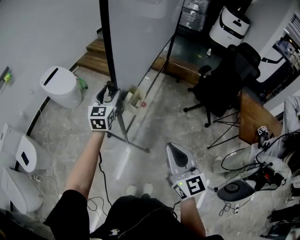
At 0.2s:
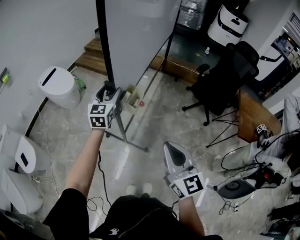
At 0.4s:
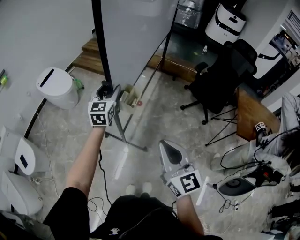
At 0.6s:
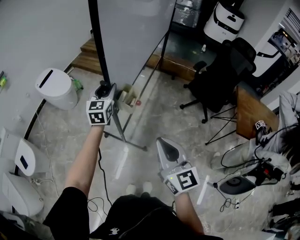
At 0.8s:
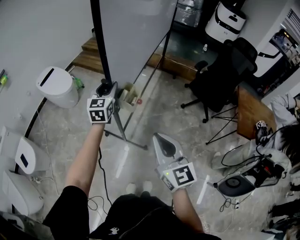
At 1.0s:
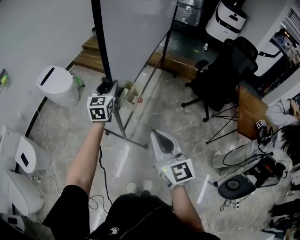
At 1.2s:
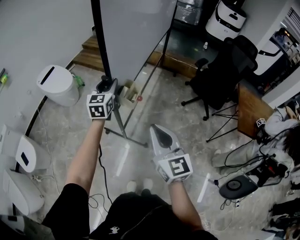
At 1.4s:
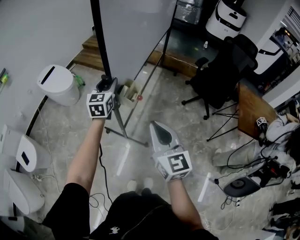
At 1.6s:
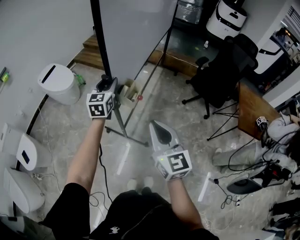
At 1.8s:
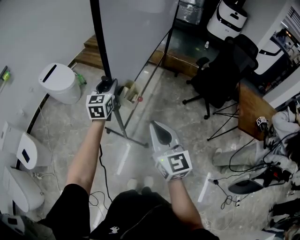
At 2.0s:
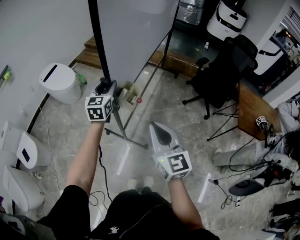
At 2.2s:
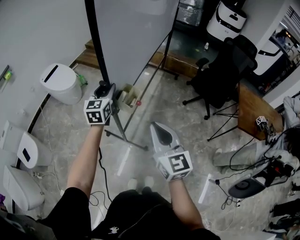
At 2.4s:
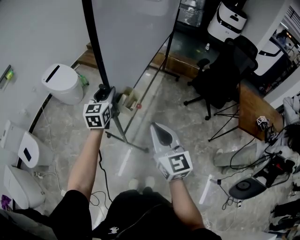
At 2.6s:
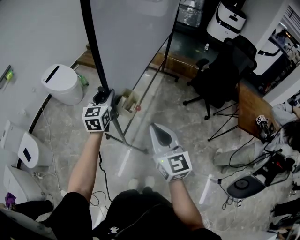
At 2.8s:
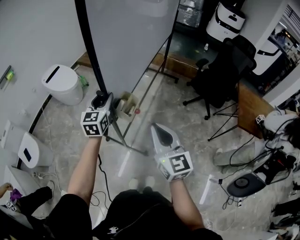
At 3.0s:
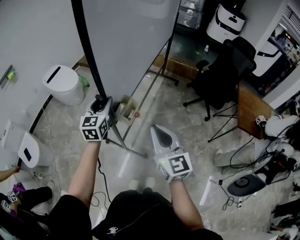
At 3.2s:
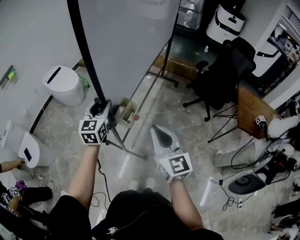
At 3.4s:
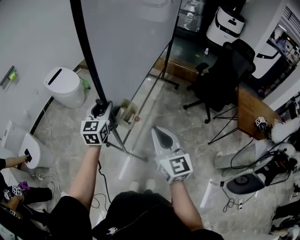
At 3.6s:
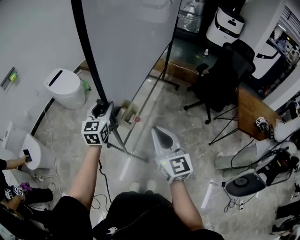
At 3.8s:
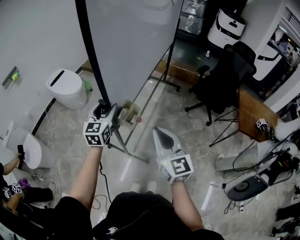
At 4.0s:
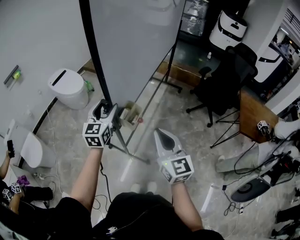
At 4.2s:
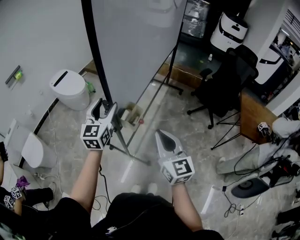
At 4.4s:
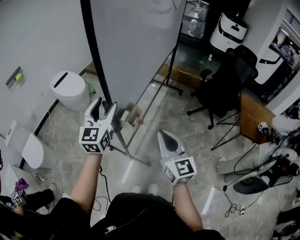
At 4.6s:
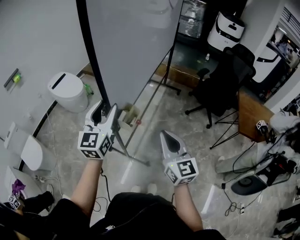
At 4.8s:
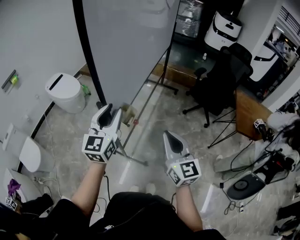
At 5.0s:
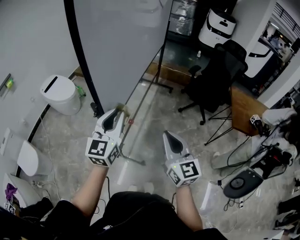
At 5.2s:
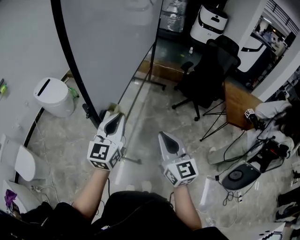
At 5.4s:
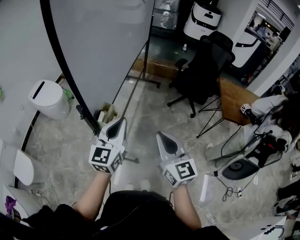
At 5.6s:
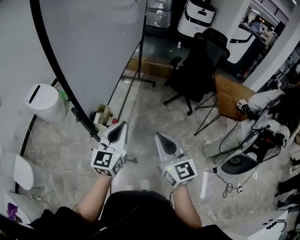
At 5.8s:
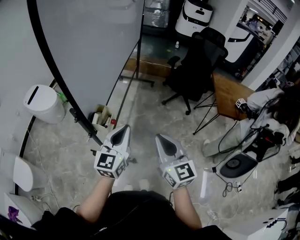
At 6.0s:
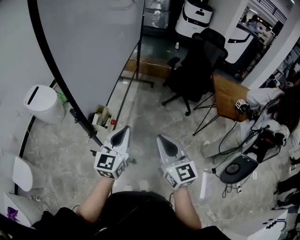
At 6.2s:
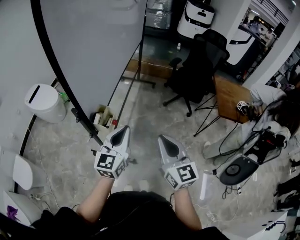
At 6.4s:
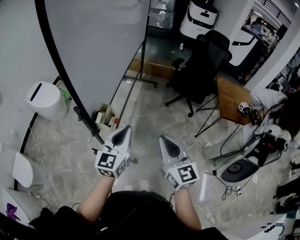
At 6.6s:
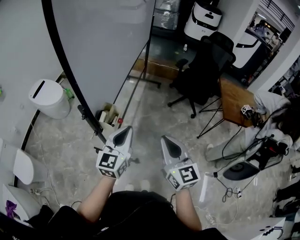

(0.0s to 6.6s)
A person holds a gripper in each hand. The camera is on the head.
0.0s - 1.6s: The right gripper changes place by about 5 cm.
1.6s - 3.2s: The right gripper moves backward, about 5 cm; the left gripper moves backward and to the left, approximately 15 cm.
3.2s - 5.0s: The left gripper moves to the right, backward and upward, about 15 cm, and opens, then closes once more. Meanwhile the right gripper shifts approximately 5 cm to the right.
5.0s - 6.6s: The left gripper shifts roughly 10 cm to the right and downward.

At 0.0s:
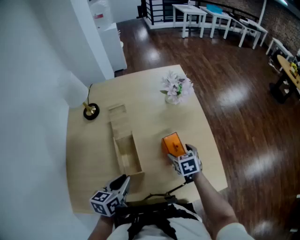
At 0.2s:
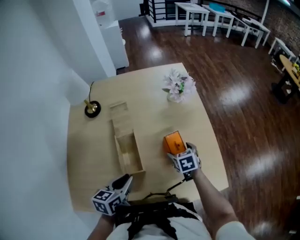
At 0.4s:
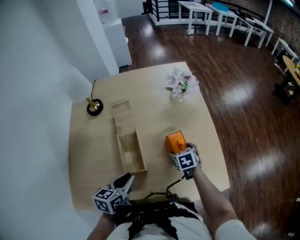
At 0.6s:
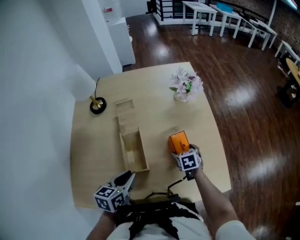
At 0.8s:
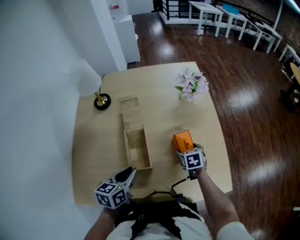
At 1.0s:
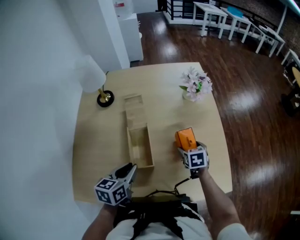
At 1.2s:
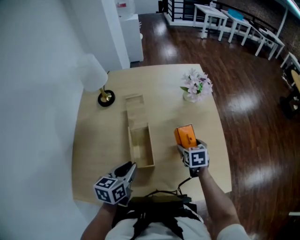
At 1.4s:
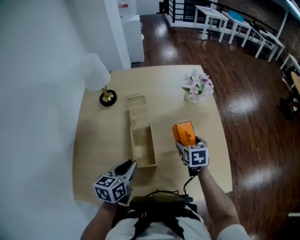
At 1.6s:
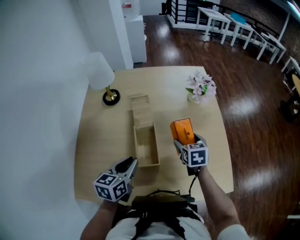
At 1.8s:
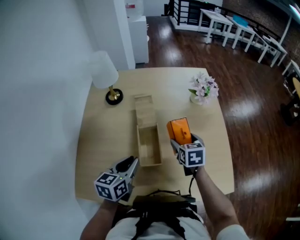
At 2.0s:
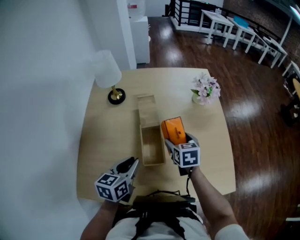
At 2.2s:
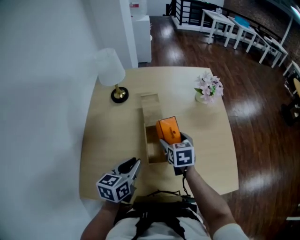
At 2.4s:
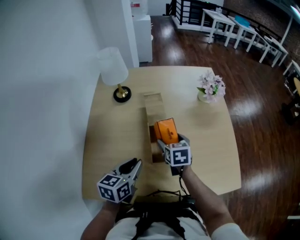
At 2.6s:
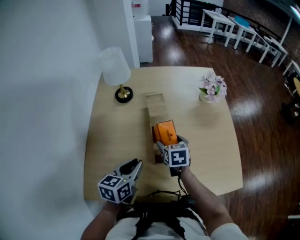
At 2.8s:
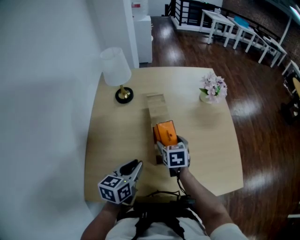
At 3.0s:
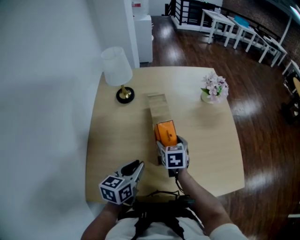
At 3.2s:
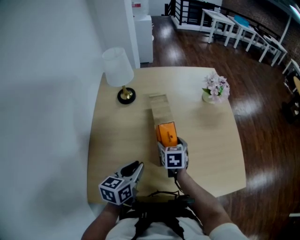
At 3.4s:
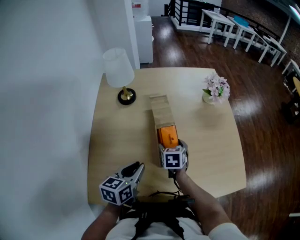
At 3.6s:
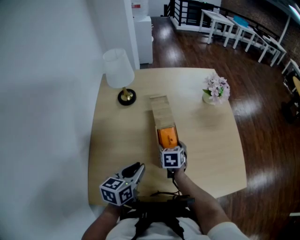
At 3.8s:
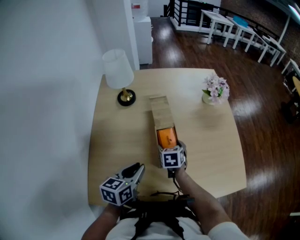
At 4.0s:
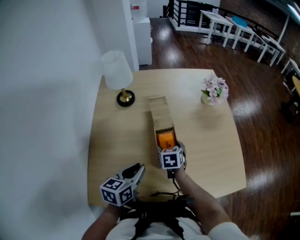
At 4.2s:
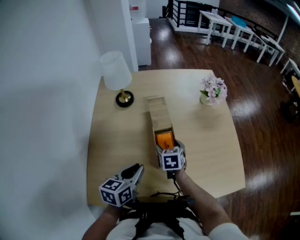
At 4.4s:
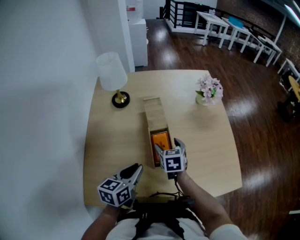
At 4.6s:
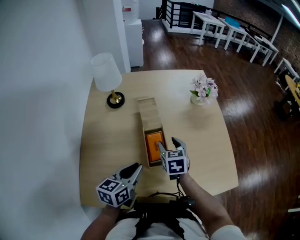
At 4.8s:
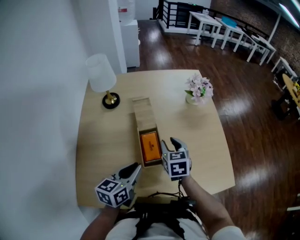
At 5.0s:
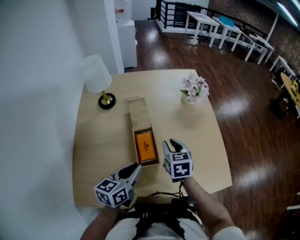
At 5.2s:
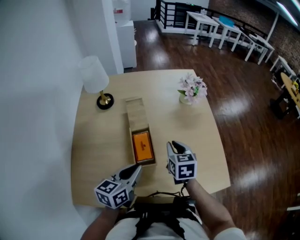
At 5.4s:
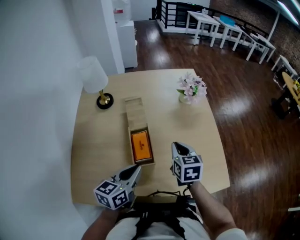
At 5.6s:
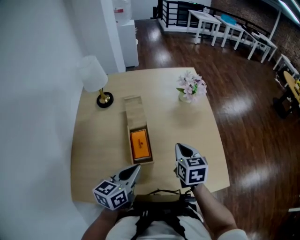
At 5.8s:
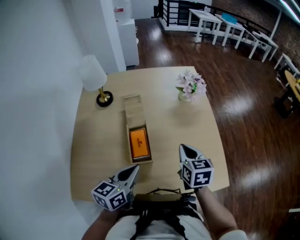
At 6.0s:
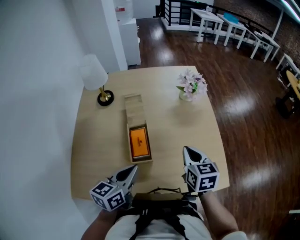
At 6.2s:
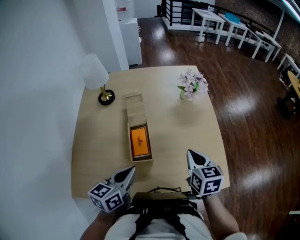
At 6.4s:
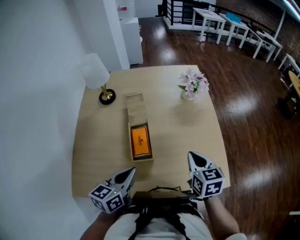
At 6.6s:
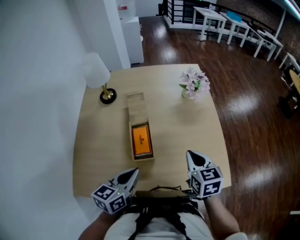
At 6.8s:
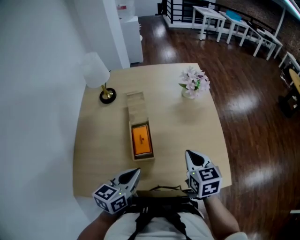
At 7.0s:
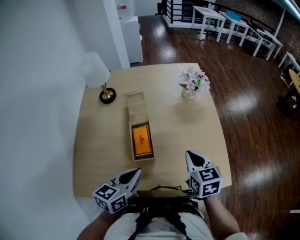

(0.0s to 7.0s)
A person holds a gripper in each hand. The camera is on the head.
0.0s - 1.4s: The right gripper changes place by roughly 5 cm.
1.4s - 2.8s: The left gripper goes roughly 10 cm to the left. The right gripper goes some 20 cm to the left.
2.8s - 4.2s: The grippers stay close to where they were, moving slightly.
4.2s - 5.6s: The right gripper moves to the right and upward, approximately 20 cm, and closes. The left gripper shifts about 15 cm to the right.
5.6s - 7.0s: The right gripper shifts by approximately 5 cm.

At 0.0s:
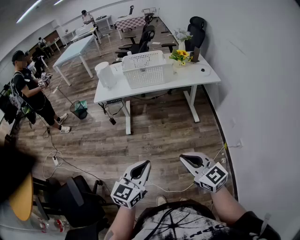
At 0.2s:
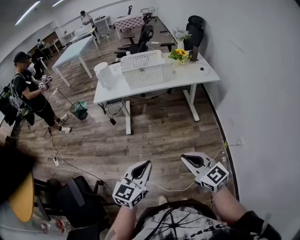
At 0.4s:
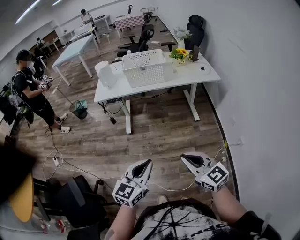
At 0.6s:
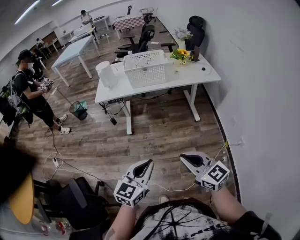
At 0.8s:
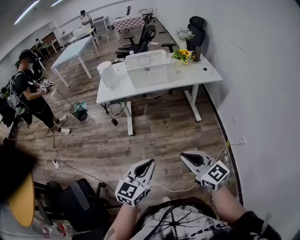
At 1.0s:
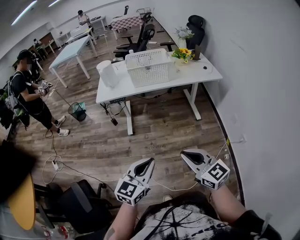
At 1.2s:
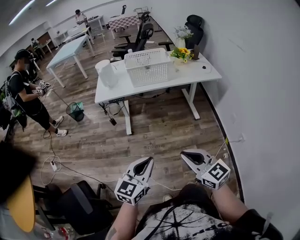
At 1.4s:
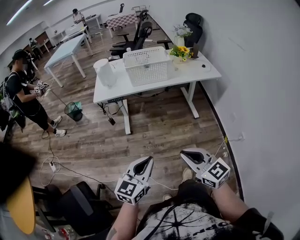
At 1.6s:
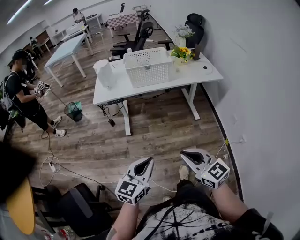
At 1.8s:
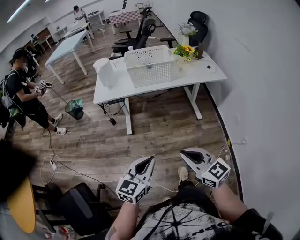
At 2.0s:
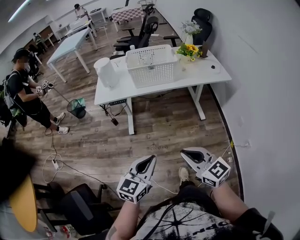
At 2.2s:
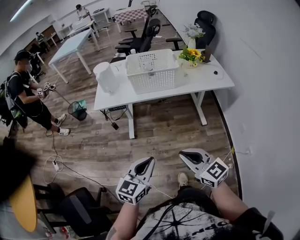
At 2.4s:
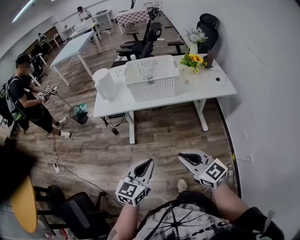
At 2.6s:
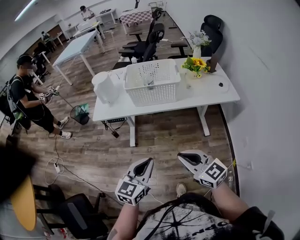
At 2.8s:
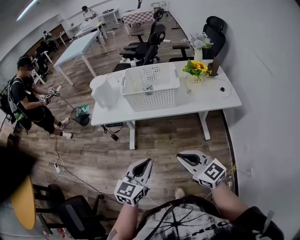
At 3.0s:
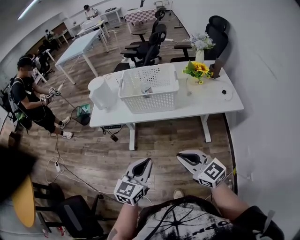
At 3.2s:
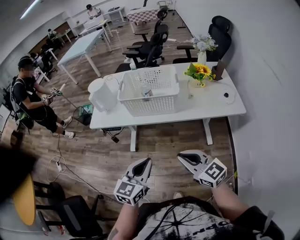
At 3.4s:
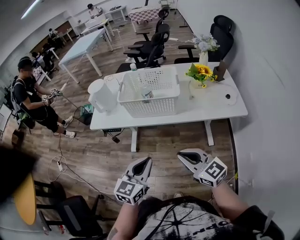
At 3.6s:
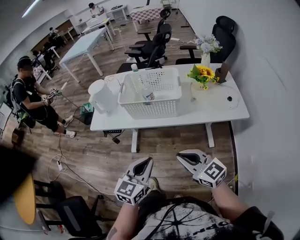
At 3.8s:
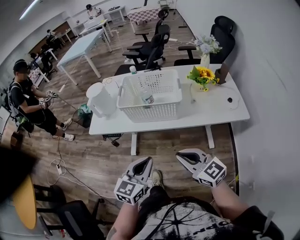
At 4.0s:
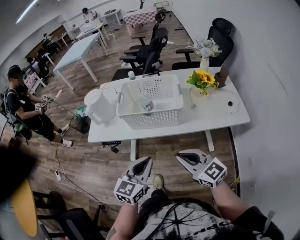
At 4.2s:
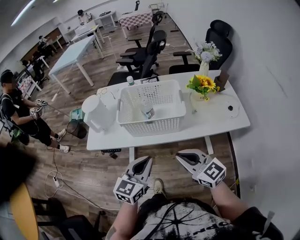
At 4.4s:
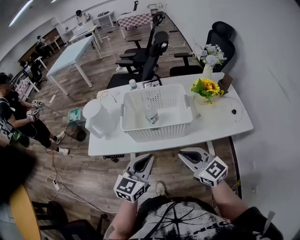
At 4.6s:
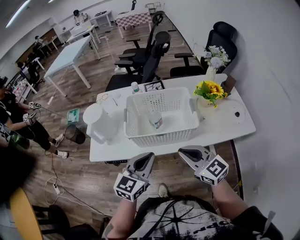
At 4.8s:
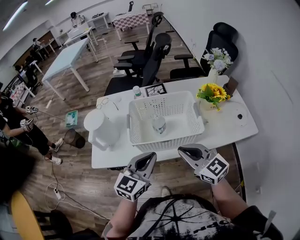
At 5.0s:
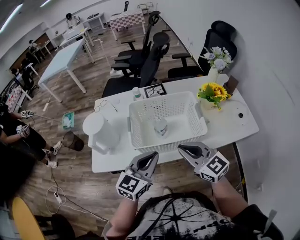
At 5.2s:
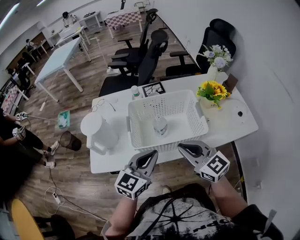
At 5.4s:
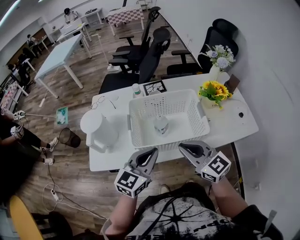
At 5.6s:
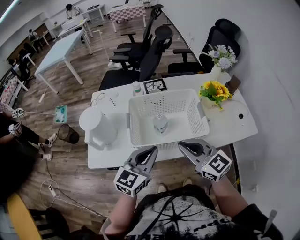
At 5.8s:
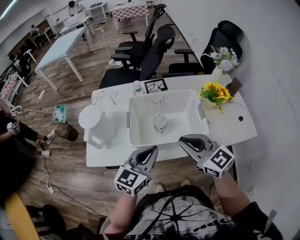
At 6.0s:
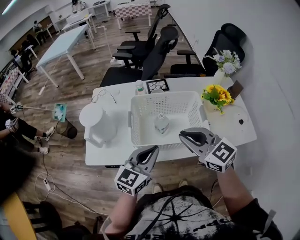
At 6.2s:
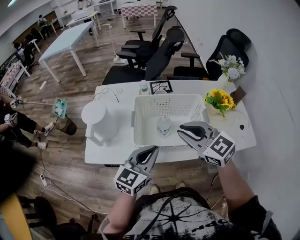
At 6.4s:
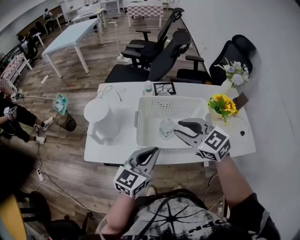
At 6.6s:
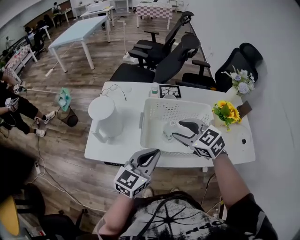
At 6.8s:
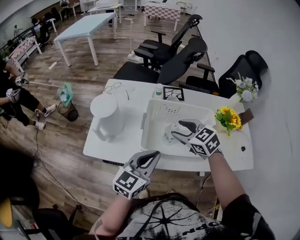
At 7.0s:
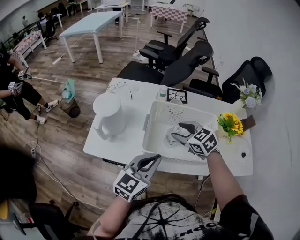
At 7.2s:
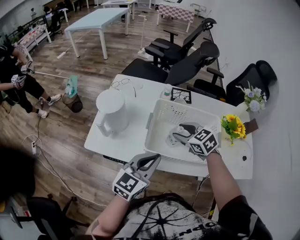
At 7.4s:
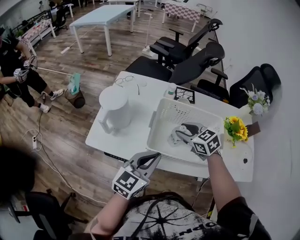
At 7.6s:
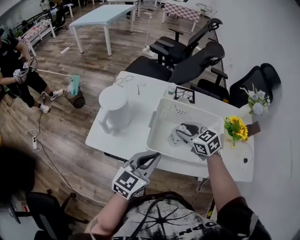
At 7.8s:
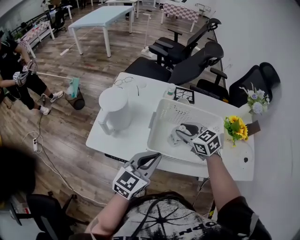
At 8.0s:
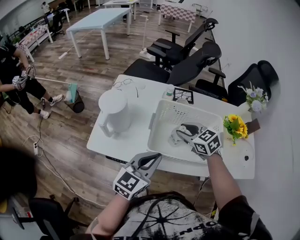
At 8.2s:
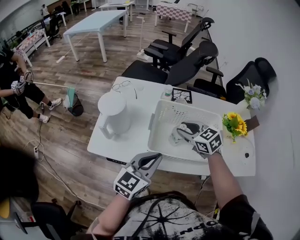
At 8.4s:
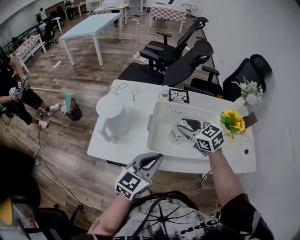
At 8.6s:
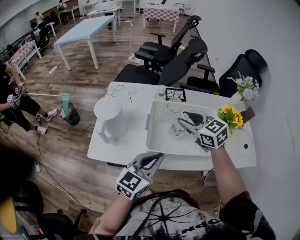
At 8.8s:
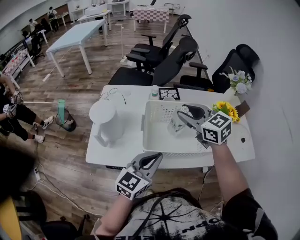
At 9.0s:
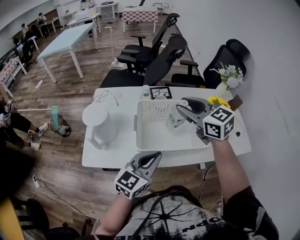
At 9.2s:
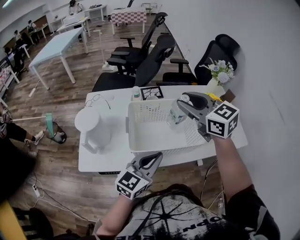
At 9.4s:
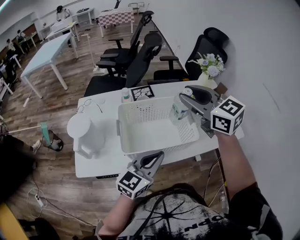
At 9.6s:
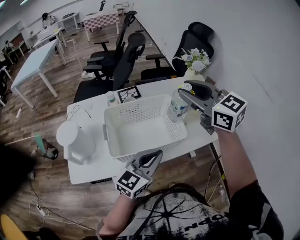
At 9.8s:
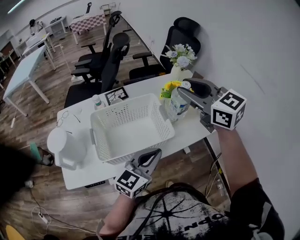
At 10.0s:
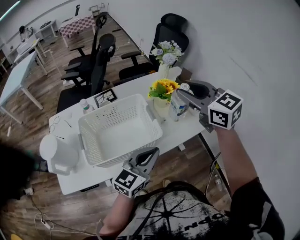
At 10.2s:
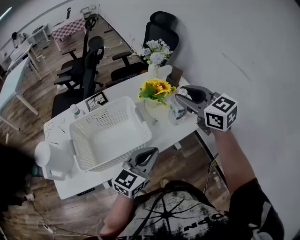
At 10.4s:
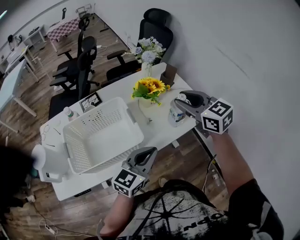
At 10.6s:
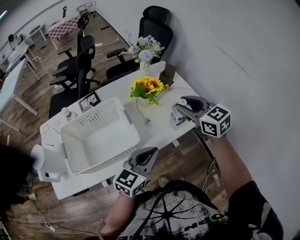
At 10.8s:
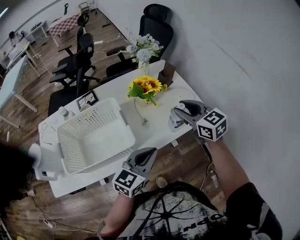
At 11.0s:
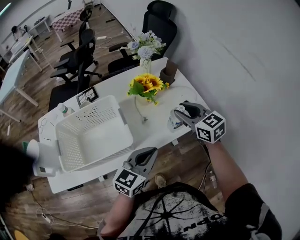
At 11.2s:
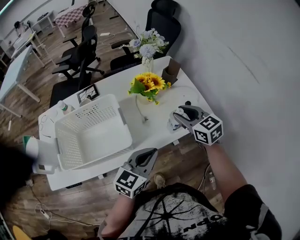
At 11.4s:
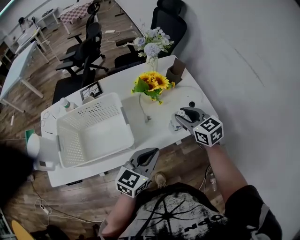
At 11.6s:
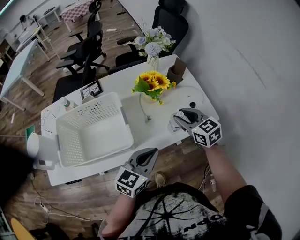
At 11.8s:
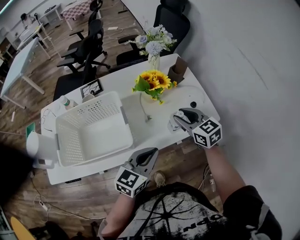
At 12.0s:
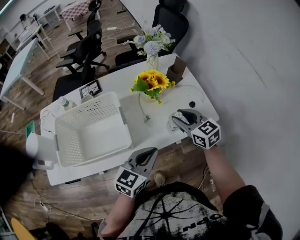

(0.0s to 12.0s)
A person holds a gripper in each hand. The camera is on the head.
0.0s - 1.6s: The two grippers go some 10 cm to the left and forward.
1.6s - 3.0s: Both grippers travel together forward and to the right, about 30 cm.
3.0s - 4.4s: The two grippers go approximately 20 cm forward.
4.4s - 6.0s: Both grippers travel together forward, roughly 15 cm.
6.0s - 7.6s: The right gripper heads forward and downward, covering about 20 cm, changes its angle by about 20 degrees, and opens up.
7.6s - 9.0s: The right gripper travels upward by approximately 20 cm, and rotates some 20 degrees.
9.0s - 10.4s: The left gripper moves some 25 cm, and changes its angle by some 20 degrees. Meanwhile the right gripper moves approximately 10 cm upward and comes back, and changes its angle by some 30 degrees.
10.4s - 12.0s: The right gripper shifts some 15 cm downward. The left gripper travels to the right and downward by approximately 5 cm.
